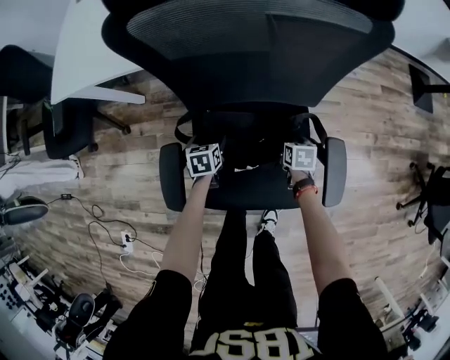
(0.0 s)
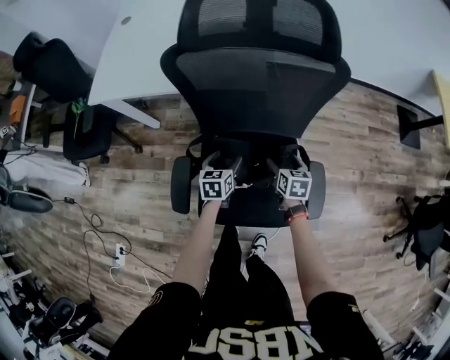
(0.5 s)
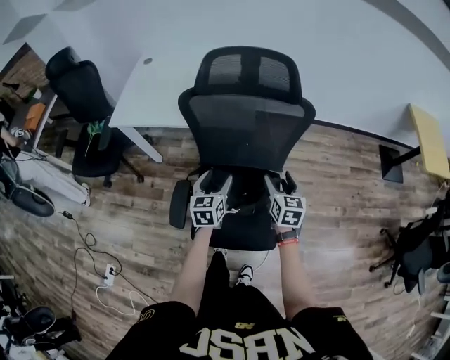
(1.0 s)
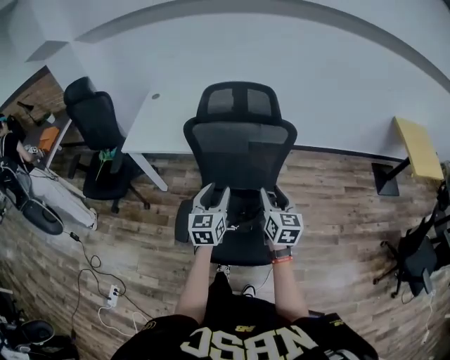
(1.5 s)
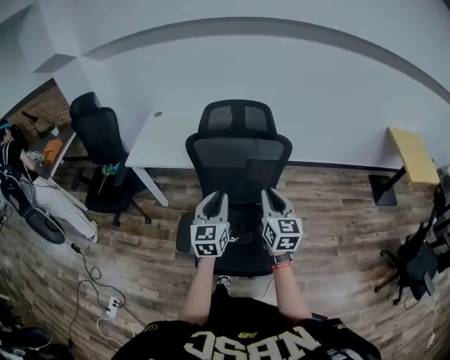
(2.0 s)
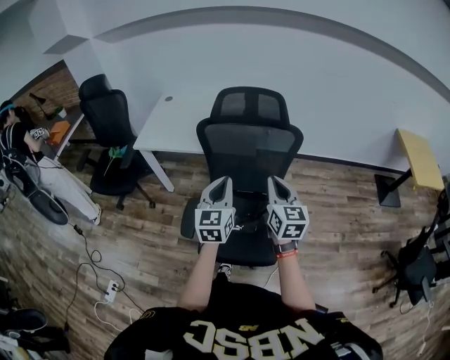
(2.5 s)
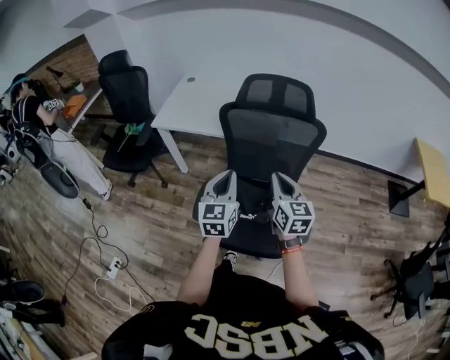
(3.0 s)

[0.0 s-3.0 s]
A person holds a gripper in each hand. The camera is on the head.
0.0 to 1.5 s: The grippers both shift upward by some 50 cm. The left gripper angles its fingers upward, by roughly 50 degrees, and closes; the right gripper tips its fingers upward by some 50 degrees, and closes.
1.5 to 3.0 s: The left gripper moves upward, some 5 cm, and closes. Meanwhile the right gripper heads to the left, covering about 5 cm, and closes up.

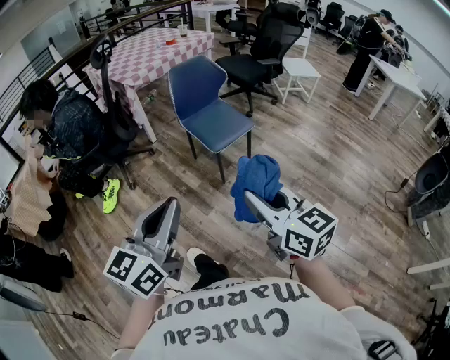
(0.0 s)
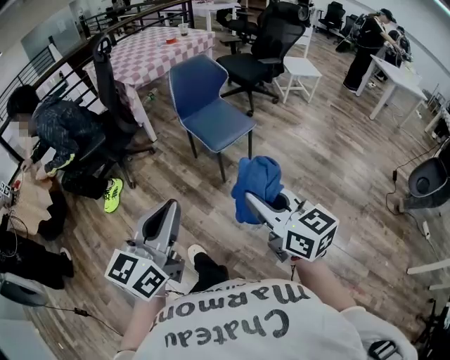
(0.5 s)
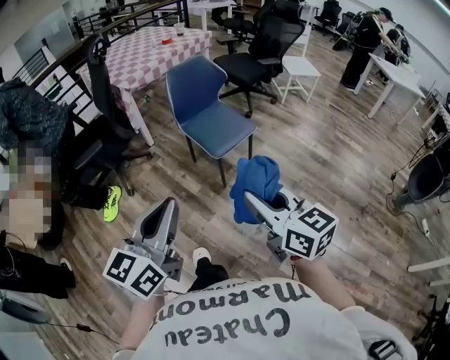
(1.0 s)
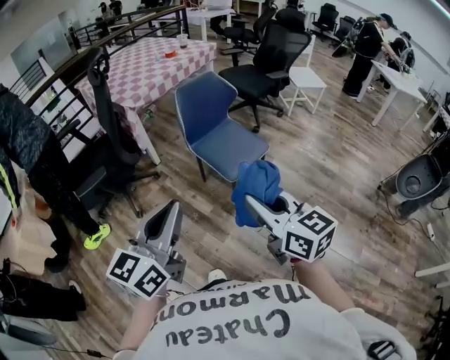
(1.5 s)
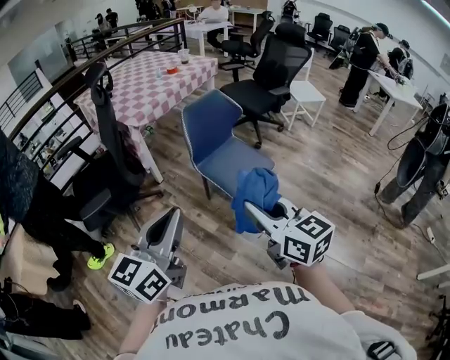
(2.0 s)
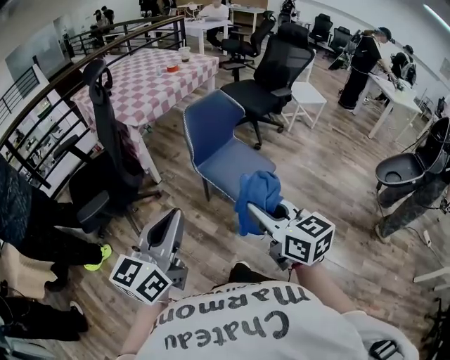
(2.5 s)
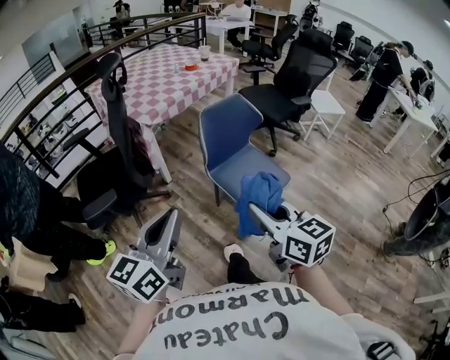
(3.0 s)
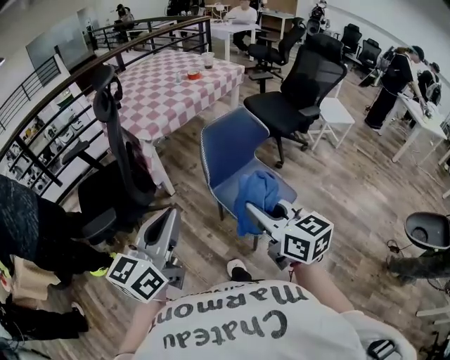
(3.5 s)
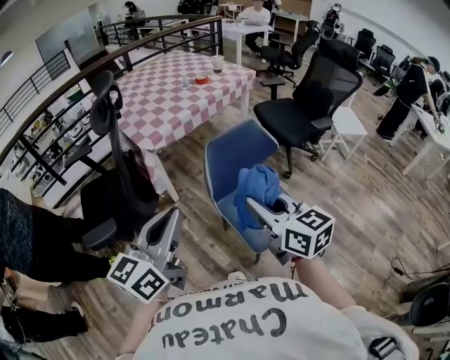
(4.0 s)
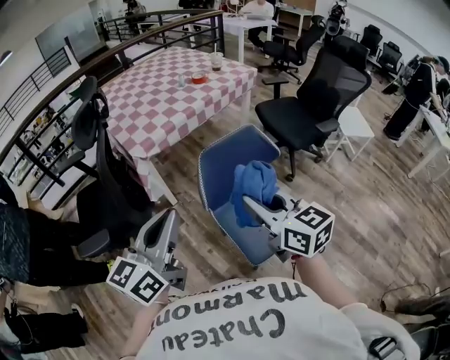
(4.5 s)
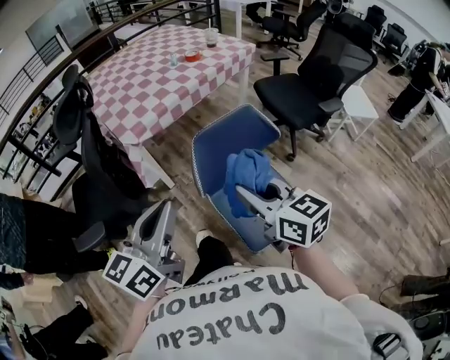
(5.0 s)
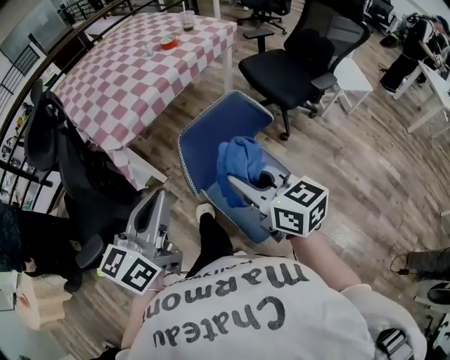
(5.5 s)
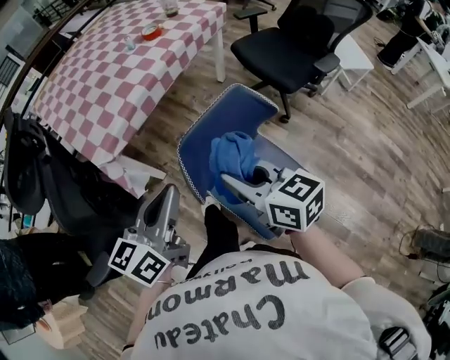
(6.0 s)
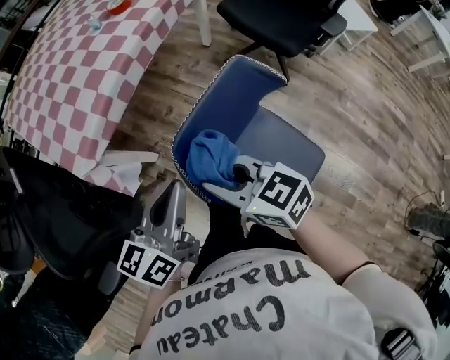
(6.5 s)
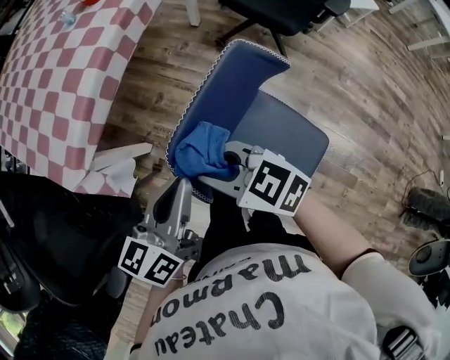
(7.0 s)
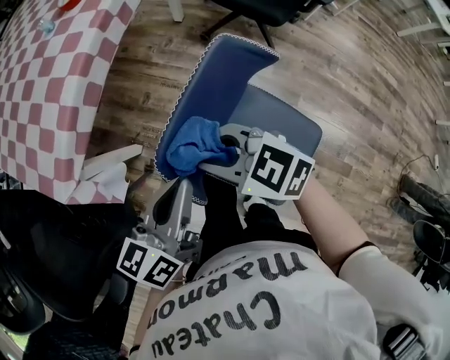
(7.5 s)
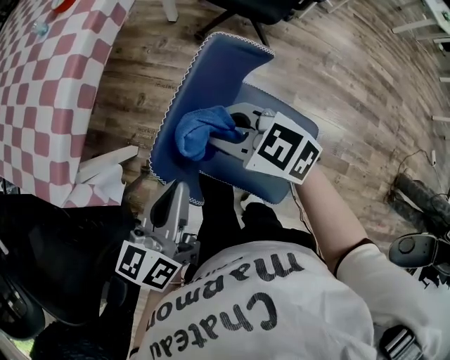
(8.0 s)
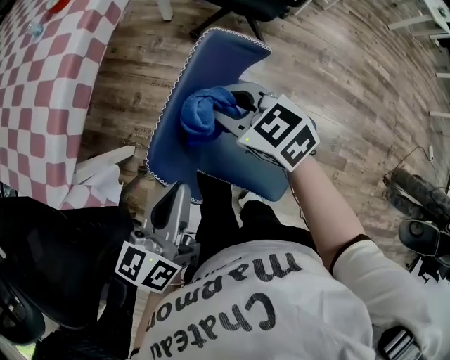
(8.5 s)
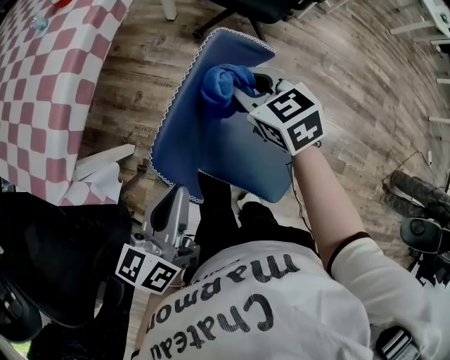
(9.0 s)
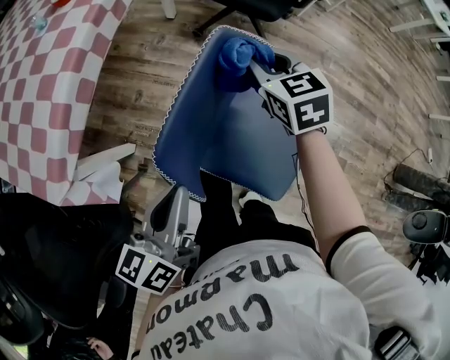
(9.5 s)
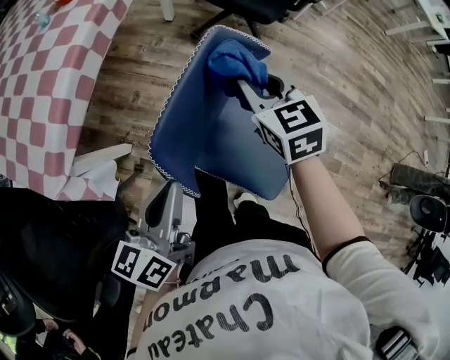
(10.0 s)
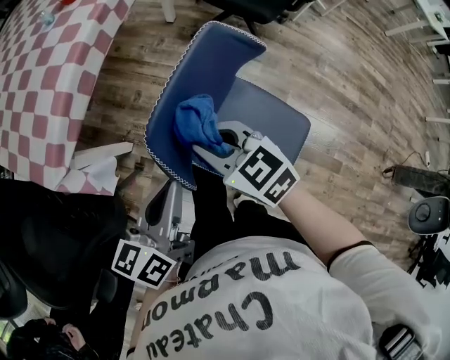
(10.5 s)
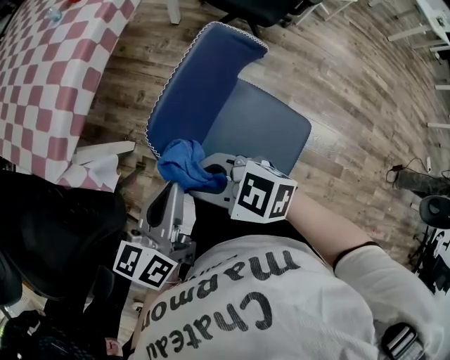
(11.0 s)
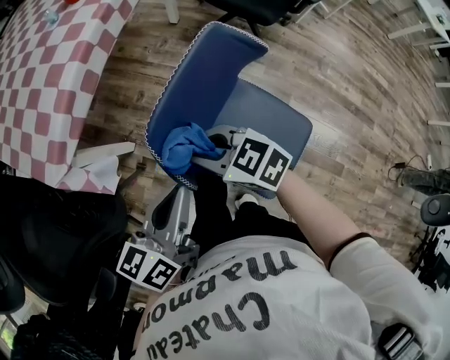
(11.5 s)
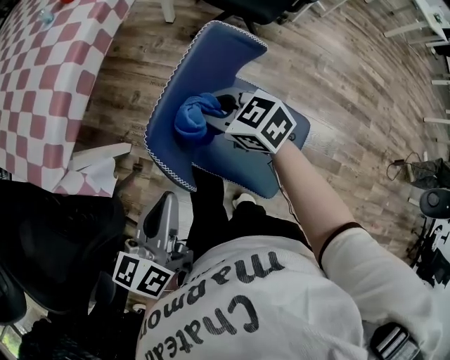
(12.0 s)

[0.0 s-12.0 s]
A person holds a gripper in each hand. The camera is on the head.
0.0 to 2.0 s: The two grippers go roughly 30 cm forward and to the left.
2.0 to 4.0 s: The grippers both shift forward by about 30 cm.
4.0 to 6.0 s: The two grippers go some 25 cm forward and downward.
6.0 to 8.0 s: The grippers both shift downward and forward by some 20 cm. The left gripper turns by approximately 20 degrees, while the right gripper swivels about 30 degrees.
8.0 to 10.0 s: The right gripper heads to the right and forward, covering some 10 cm, and turns by about 40 degrees.
10.0 to 12.0 s: The right gripper changes its angle by approximately 30 degrees.

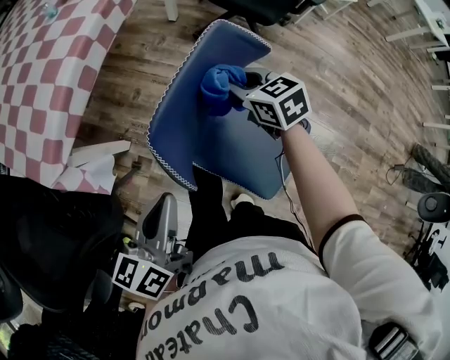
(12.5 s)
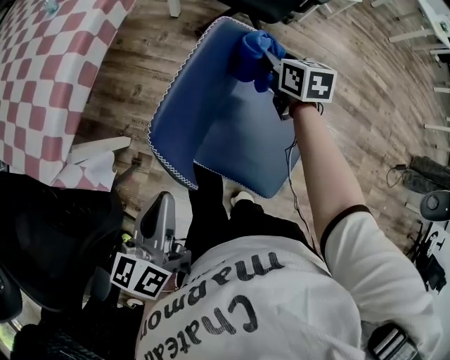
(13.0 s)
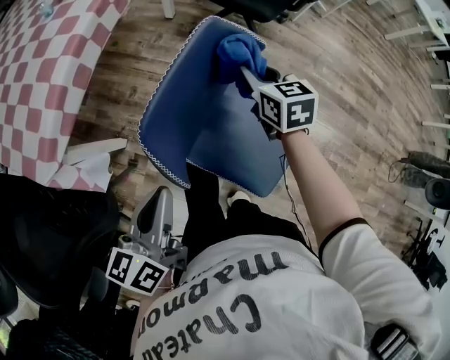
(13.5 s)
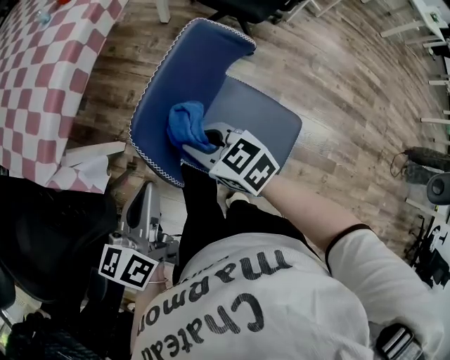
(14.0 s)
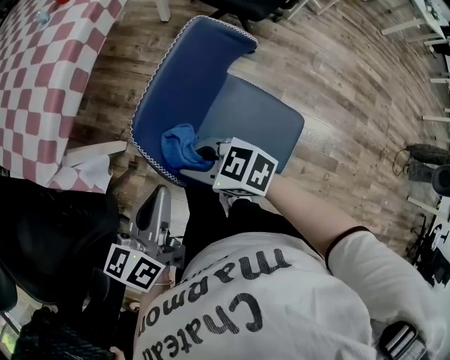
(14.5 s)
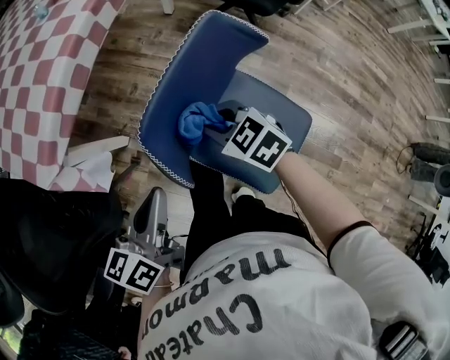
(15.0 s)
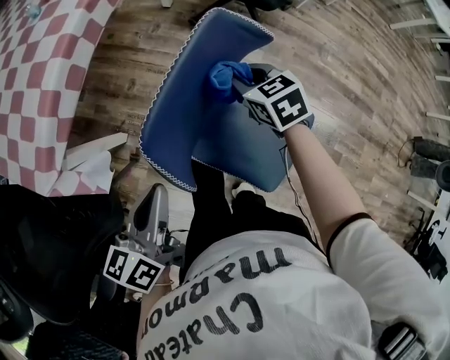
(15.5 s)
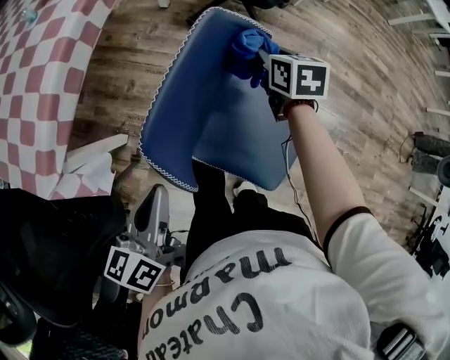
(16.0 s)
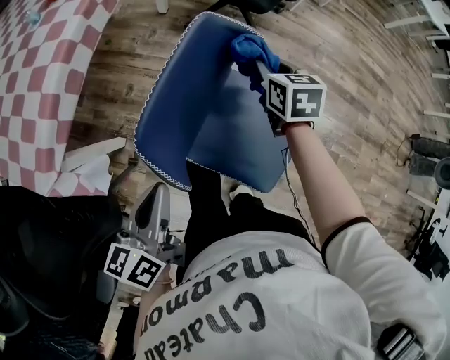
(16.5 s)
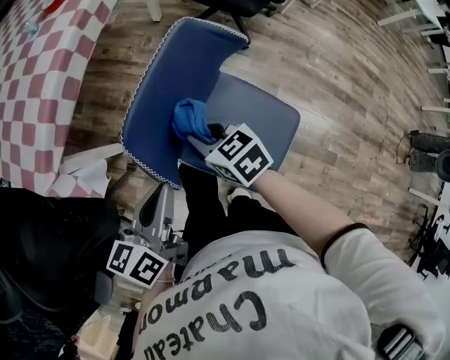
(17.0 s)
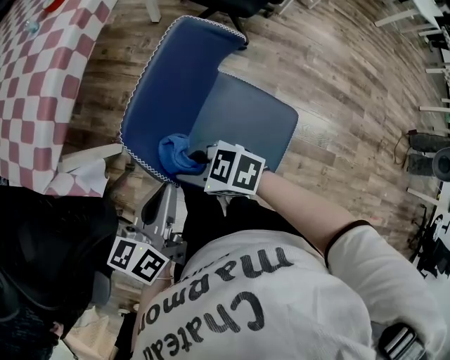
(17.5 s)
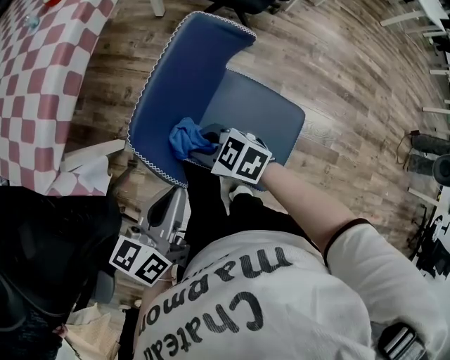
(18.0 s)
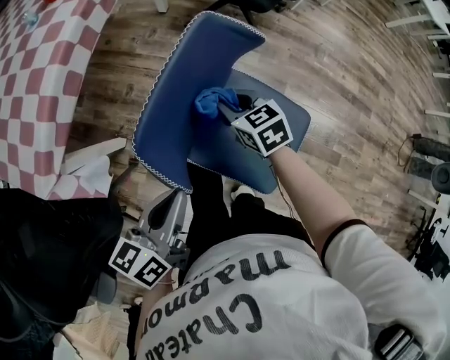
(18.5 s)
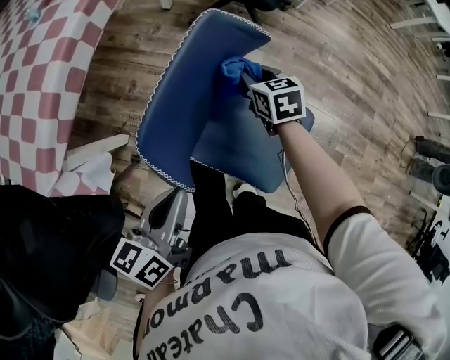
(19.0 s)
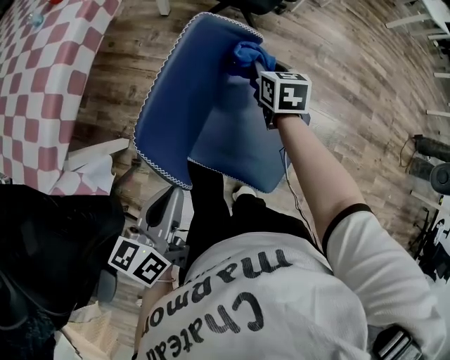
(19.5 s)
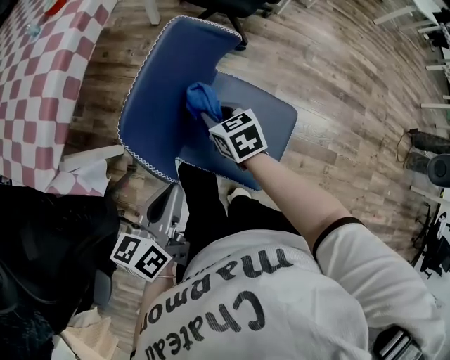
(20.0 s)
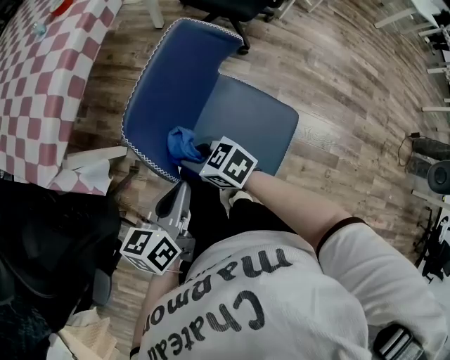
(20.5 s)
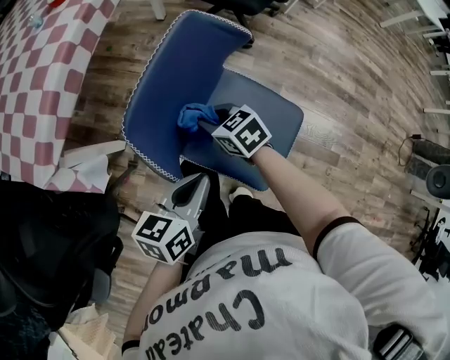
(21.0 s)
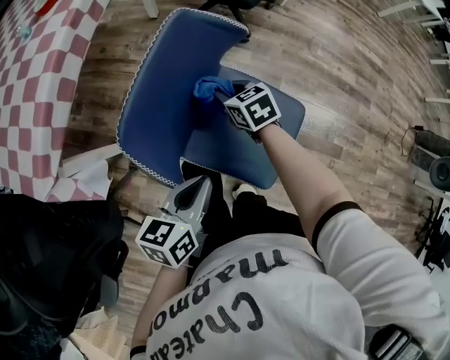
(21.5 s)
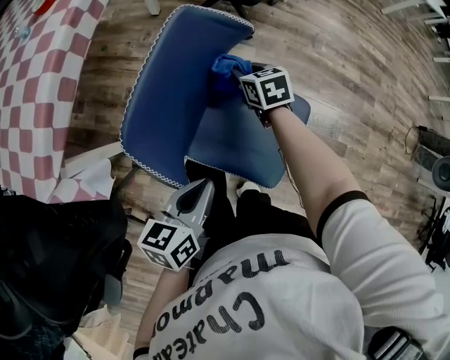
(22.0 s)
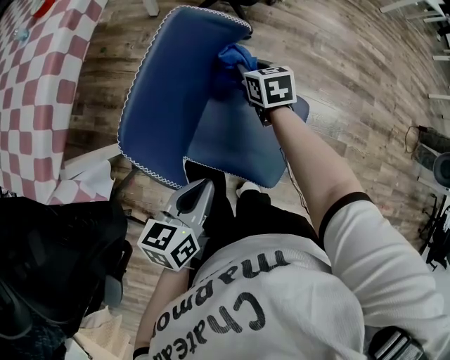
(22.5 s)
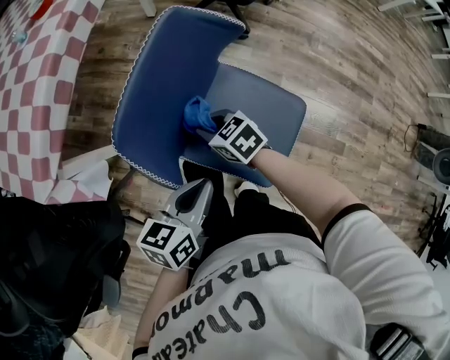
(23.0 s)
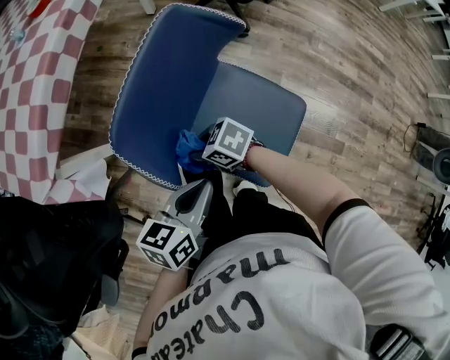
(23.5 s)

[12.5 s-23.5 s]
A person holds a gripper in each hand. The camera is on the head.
12.5 to 14.5 s: The right gripper moves roughly 25 cm, and rotates some 30 degrees.
14.5 to 16.0 s: The right gripper ends up about 35 cm from where it was, and rotates about 60 degrees.
16.0 to 18.0 s: The right gripper ends up roughly 30 cm from where it was, and swivels some 60 degrees. Meanwhile the left gripper moves about 5 cm.
18.0 to 20.0 s: The right gripper changes its angle by some 40 degrees.
20.0 to 21.5 s: The right gripper travels downward by some 5 cm, and reaches roughly 10 cm backward, then returns, while the left gripper goes roughly 10 cm downward and to the right.
21.5 to 23.5 s: The right gripper moves roughly 20 cm, and rotates some 40 degrees.

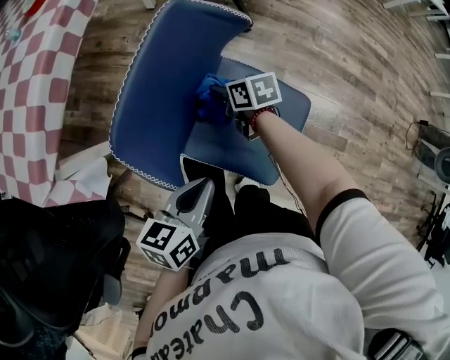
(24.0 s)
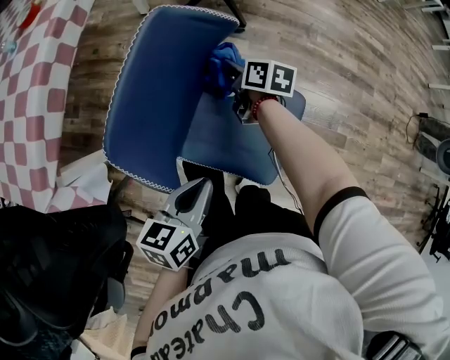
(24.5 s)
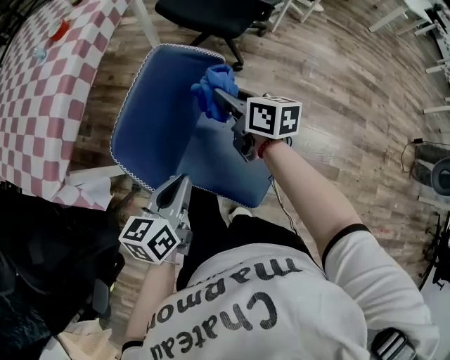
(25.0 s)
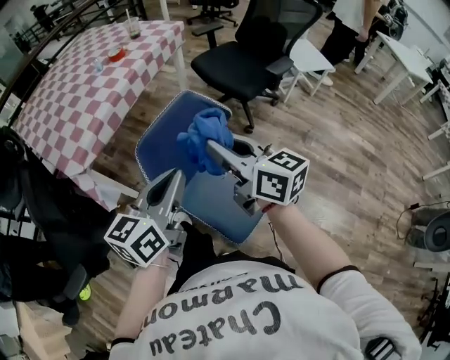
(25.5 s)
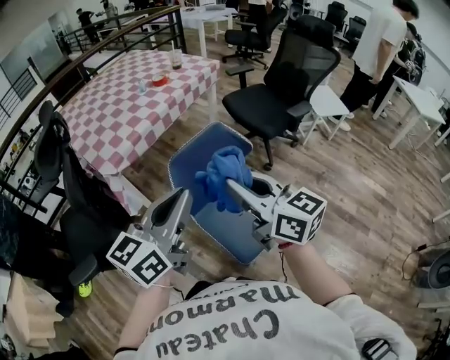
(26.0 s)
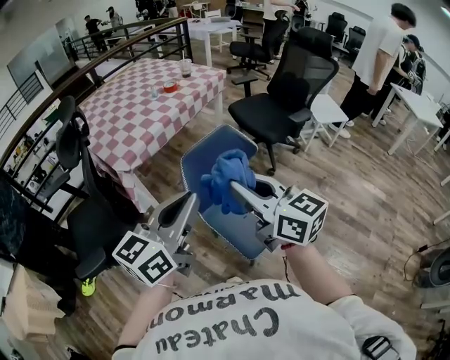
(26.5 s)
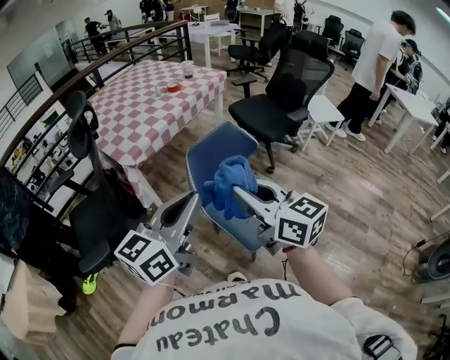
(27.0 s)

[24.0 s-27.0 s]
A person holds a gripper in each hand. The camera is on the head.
24.0 to 25.5 s: The right gripper heads upward, covering approximately 40 cm, and tips its fingers upward by approximately 40 degrees. The left gripper travels upward by roughly 25 cm, and swivels about 40 degrees.
25.5 to 27.0 s: The grippers both shift backward, upward and to the left by about 25 cm.
